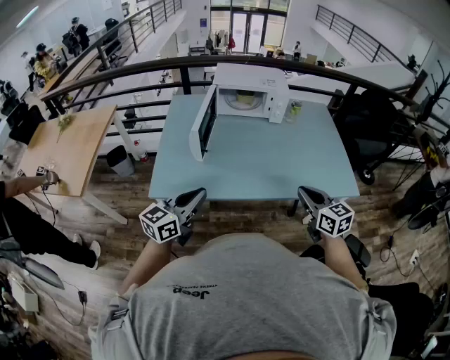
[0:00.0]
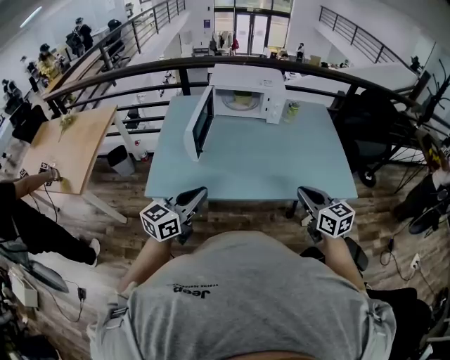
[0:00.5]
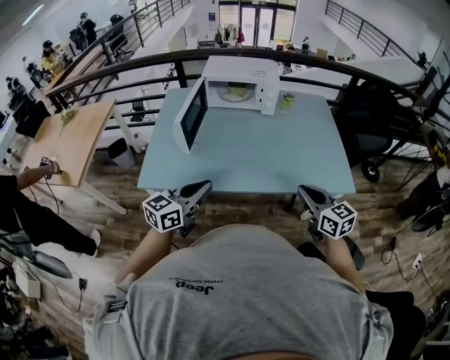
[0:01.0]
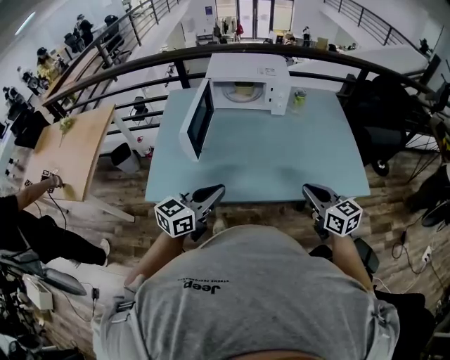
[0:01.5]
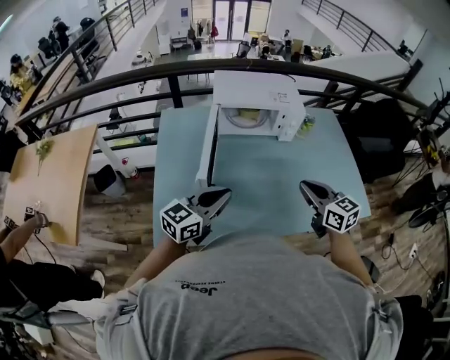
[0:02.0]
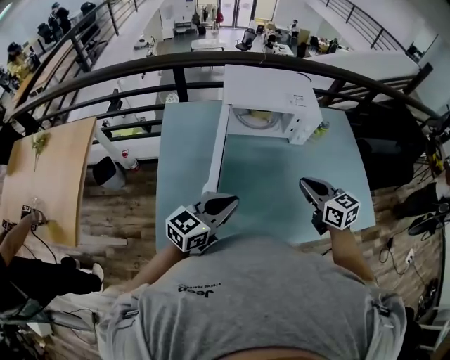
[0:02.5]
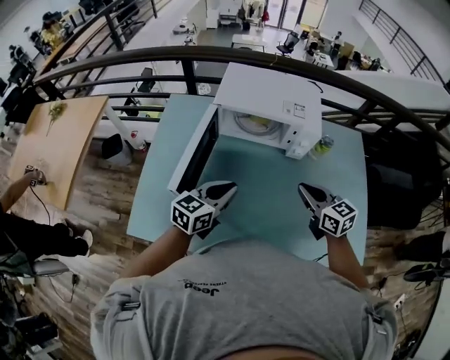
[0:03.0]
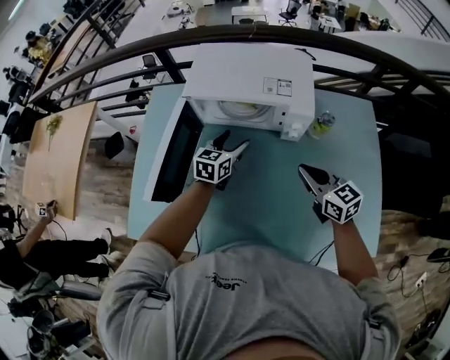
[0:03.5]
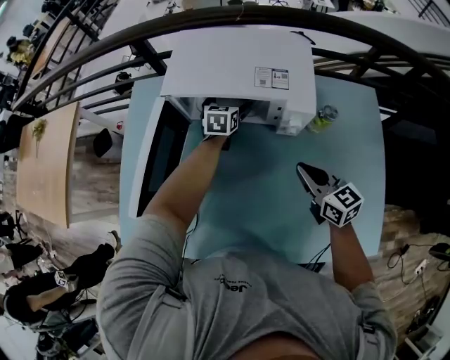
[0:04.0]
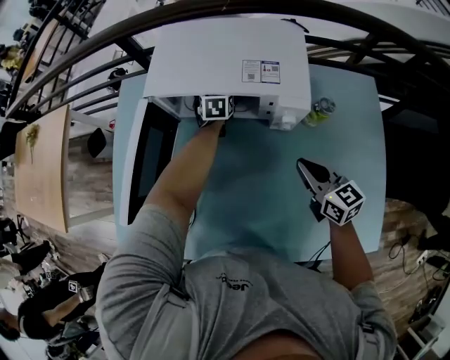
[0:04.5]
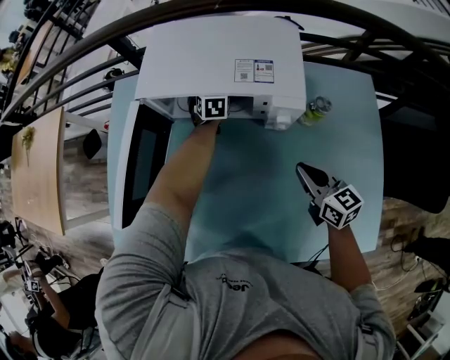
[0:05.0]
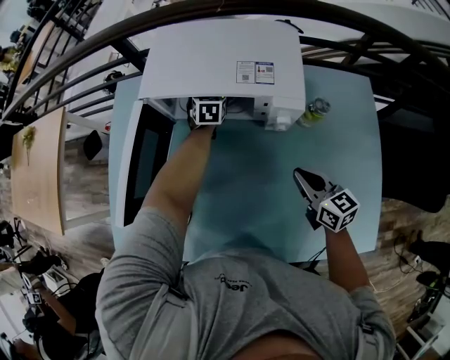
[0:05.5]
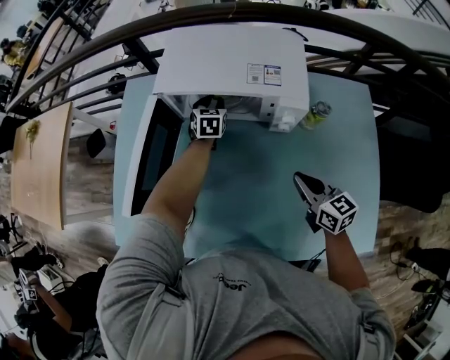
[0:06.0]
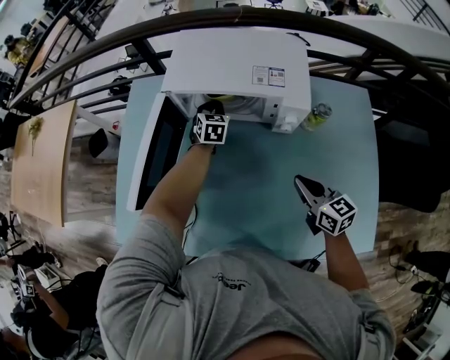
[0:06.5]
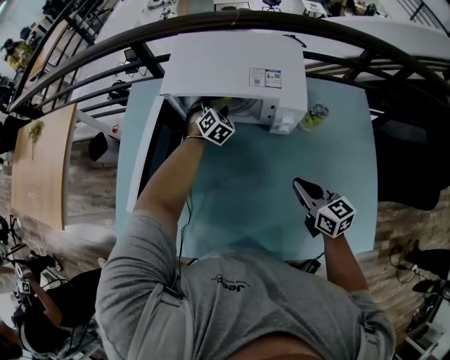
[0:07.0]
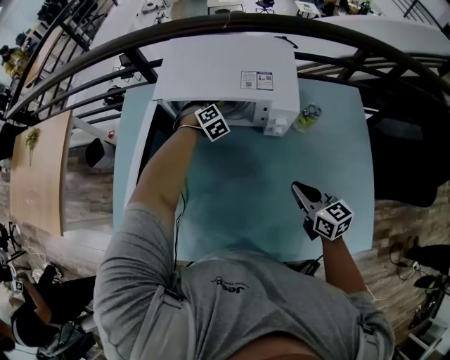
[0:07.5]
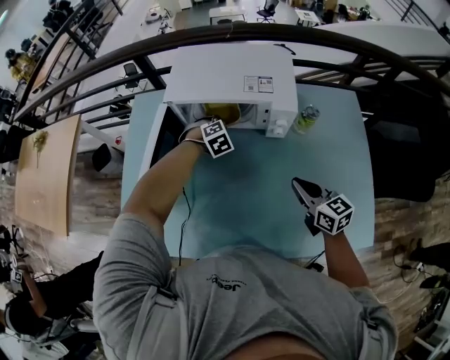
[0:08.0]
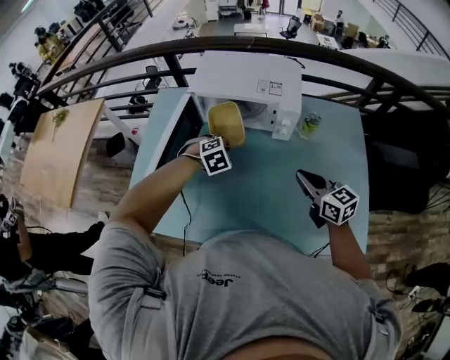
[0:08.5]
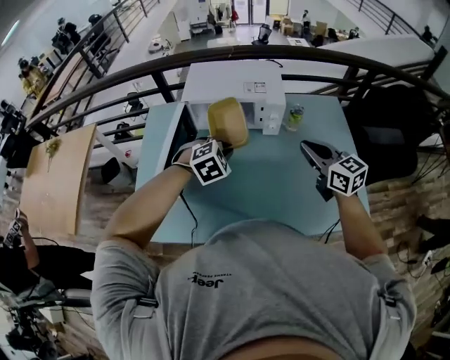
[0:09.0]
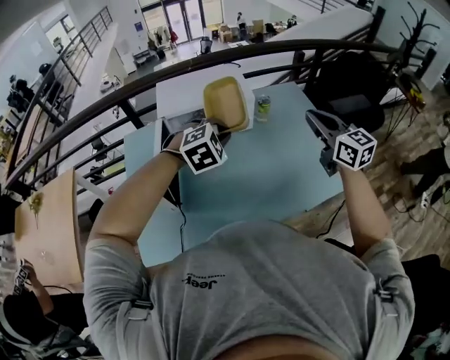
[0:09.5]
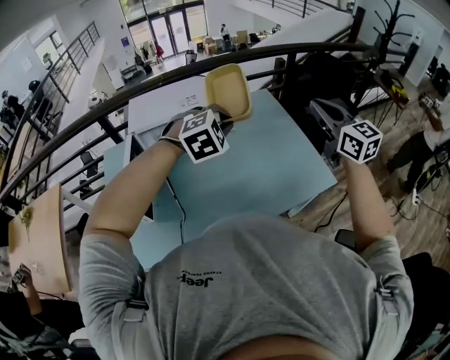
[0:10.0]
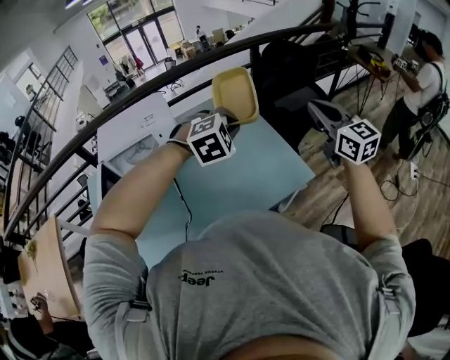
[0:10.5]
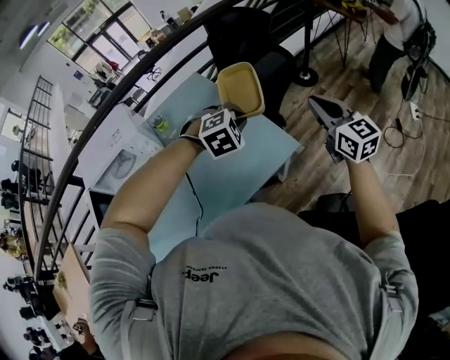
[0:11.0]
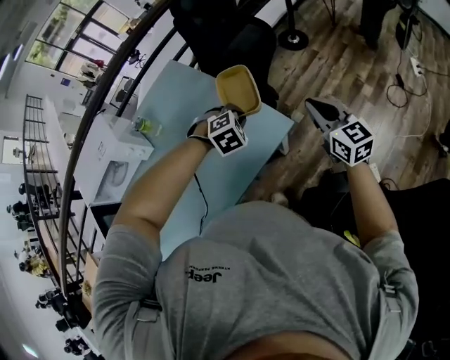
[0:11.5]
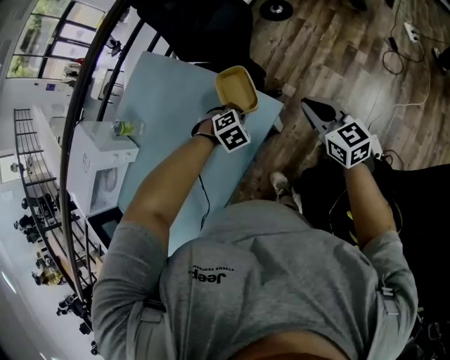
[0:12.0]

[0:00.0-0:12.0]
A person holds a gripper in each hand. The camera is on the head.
0:00.0 to 0:02.0: The left gripper travels forward by roughly 20 cm. The right gripper heads forward and to the left, covering approximately 20 cm.
0:02.0 to 0:04.0: The right gripper ends up some 30 cm from where it was; the left gripper shifts by roughly 50 cm, rotates about 50 degrees, and opens up.
0:04.0 to 0:06.0: The left gripper closes up.
0:06.0 to 0:08.0: The left gripper travels backward by roughly 10 cm, and rolls clockwise, seen from behind, by some 60 degrees.
0:08.0 to 0:10.0: The right gripper is displaced upward by approximately 30 cm, and rotates roughly 40 degrees, while the left gripper changes place by about 50 cm, and swivels some 40 degrees.
0:10.0 to 0:12.0: The left gripper changes place by roughly 60 cm, and points its fingers about 30 degrees further downward; the right gripper ends up about 50 cm from where it was, and changes its angle by roughly 30 degrees.

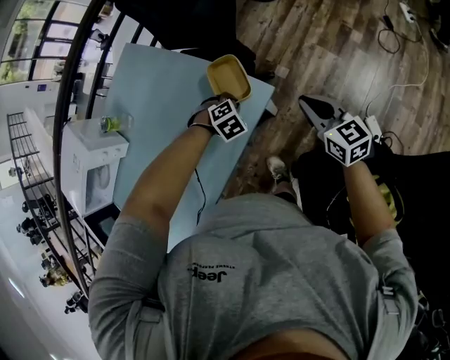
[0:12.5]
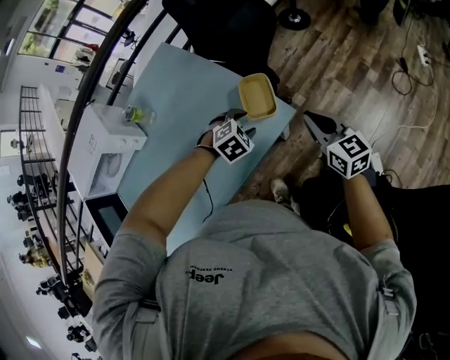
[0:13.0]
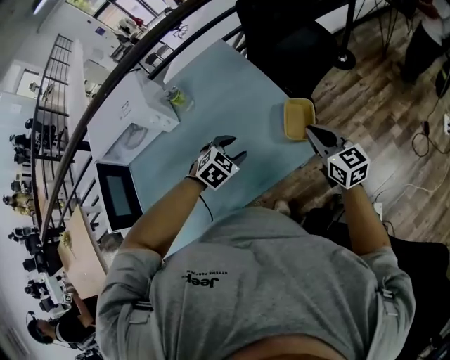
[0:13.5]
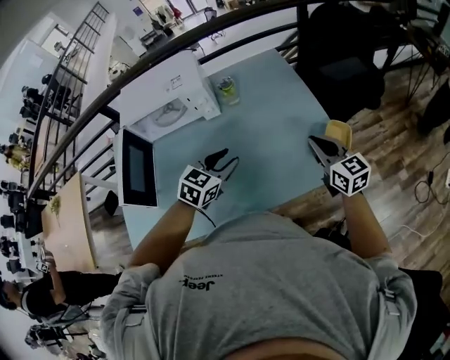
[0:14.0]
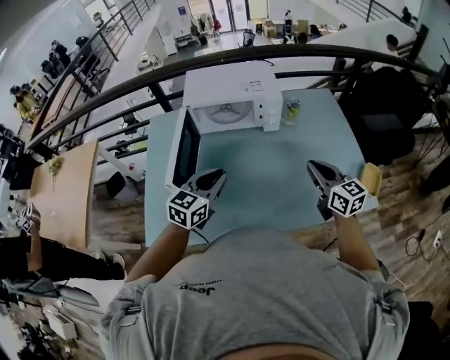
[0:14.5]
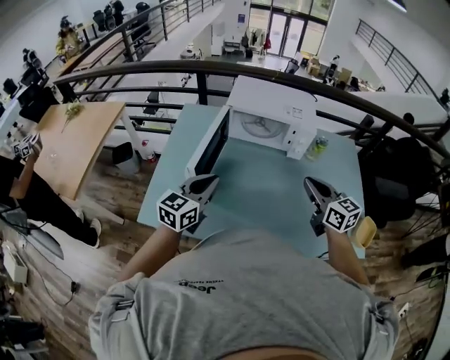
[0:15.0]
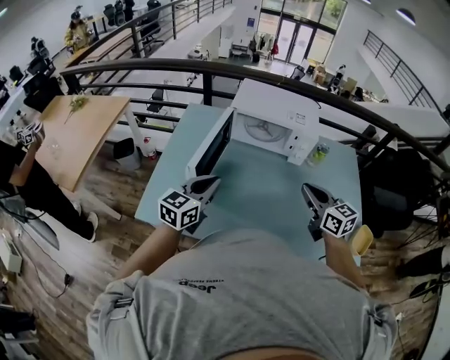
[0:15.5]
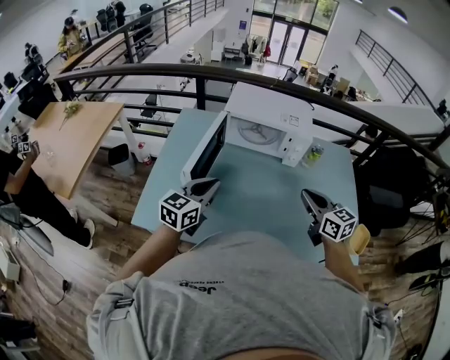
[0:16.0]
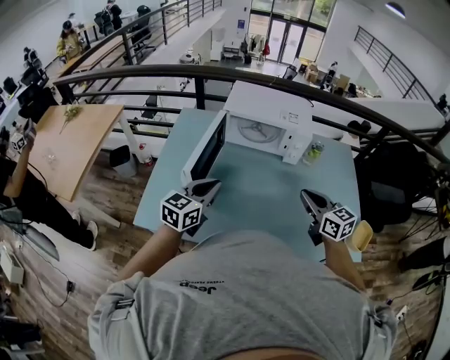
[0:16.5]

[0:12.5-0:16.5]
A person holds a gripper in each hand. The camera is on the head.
0:12.5 to 0:14.5: The pair of grippers is taken roughly 60 cm. The right gripper swivels approximately 40 degrees. The left gripper points its fingers approximately 60 degrees further upward.
0:14.5 to 0:16.5: Both grippers move to the left, about 5 cm.

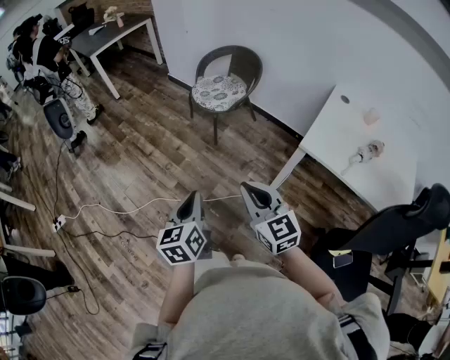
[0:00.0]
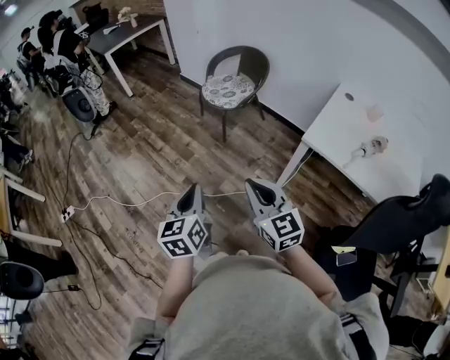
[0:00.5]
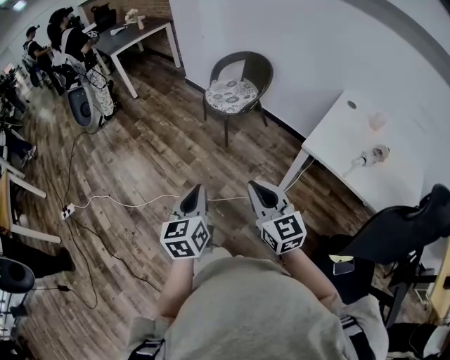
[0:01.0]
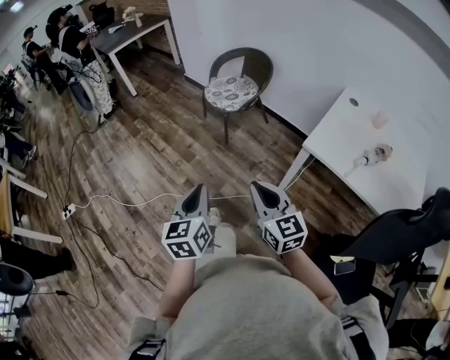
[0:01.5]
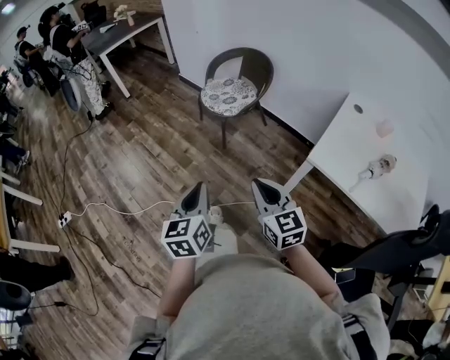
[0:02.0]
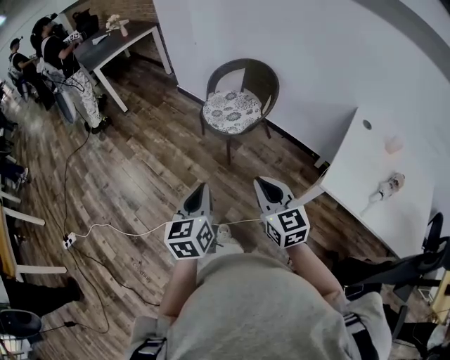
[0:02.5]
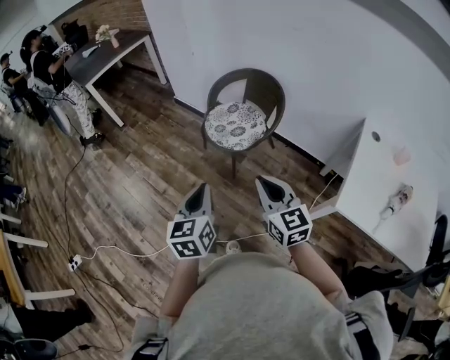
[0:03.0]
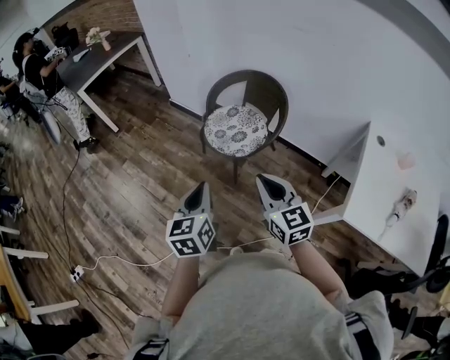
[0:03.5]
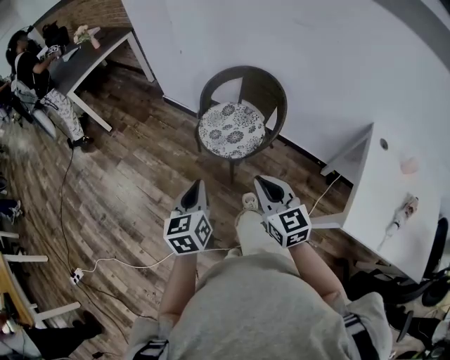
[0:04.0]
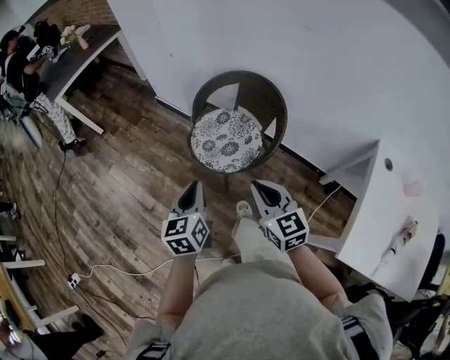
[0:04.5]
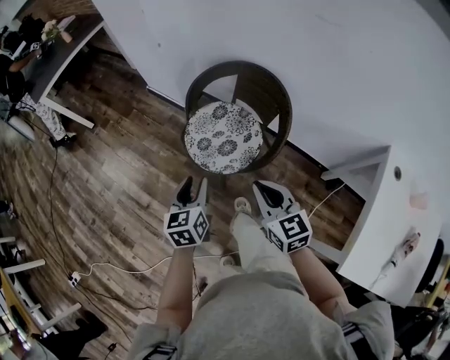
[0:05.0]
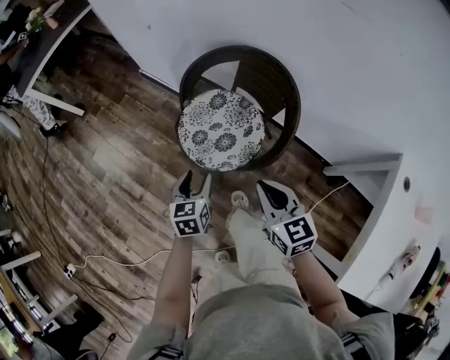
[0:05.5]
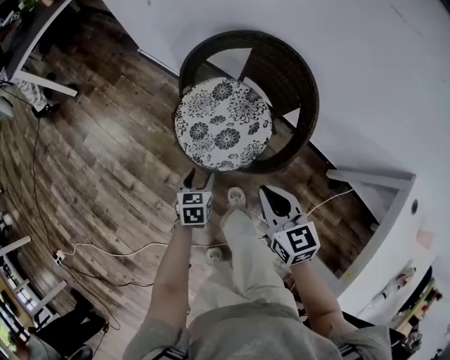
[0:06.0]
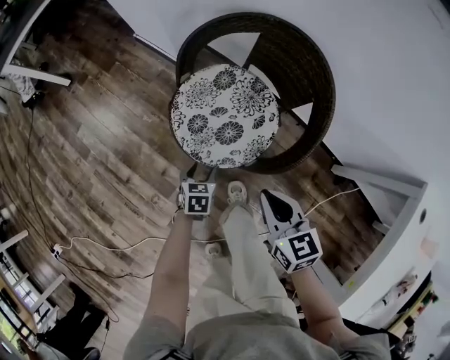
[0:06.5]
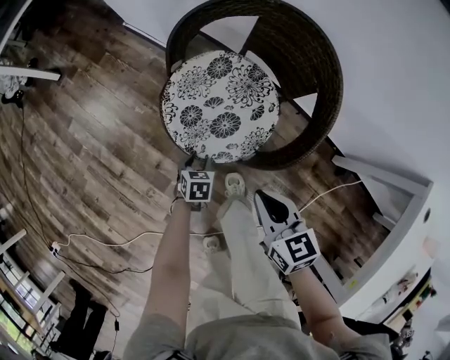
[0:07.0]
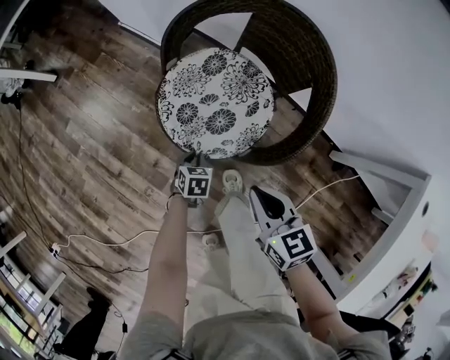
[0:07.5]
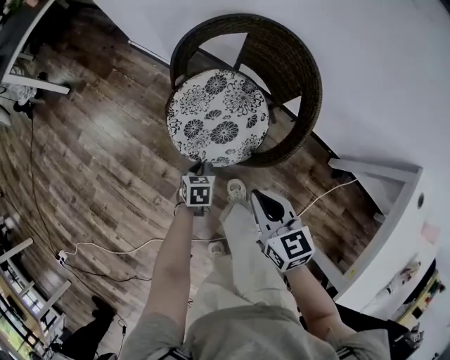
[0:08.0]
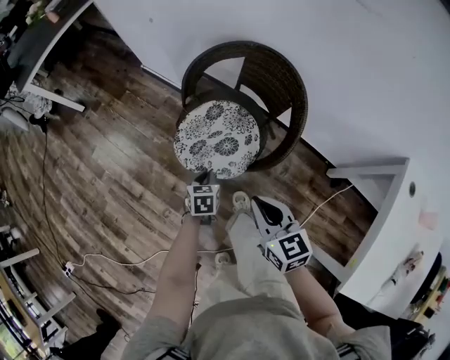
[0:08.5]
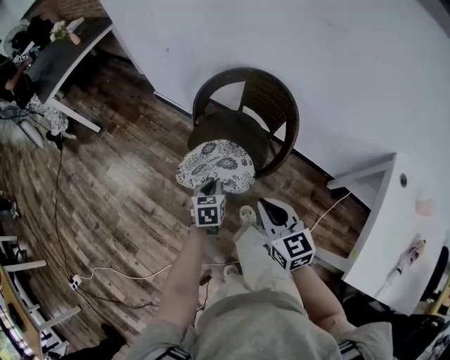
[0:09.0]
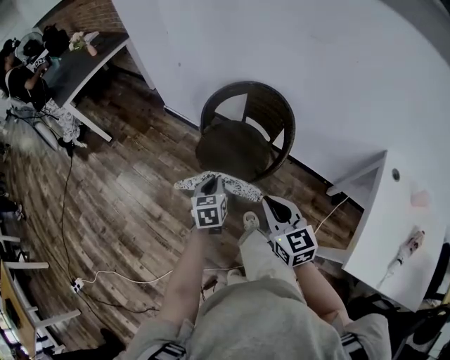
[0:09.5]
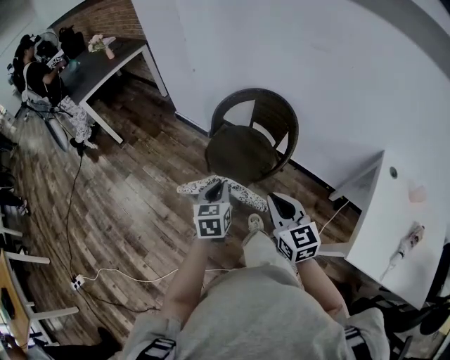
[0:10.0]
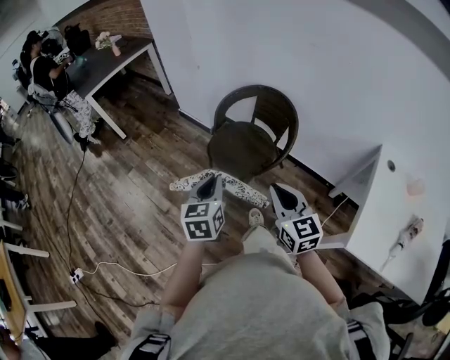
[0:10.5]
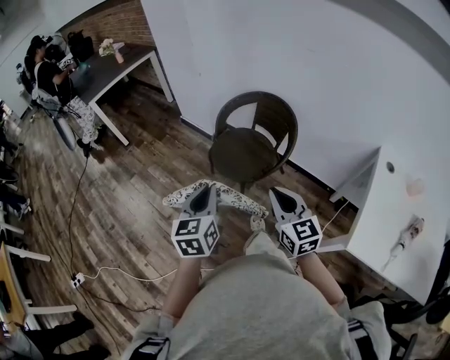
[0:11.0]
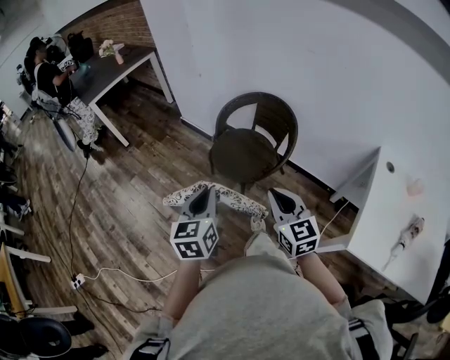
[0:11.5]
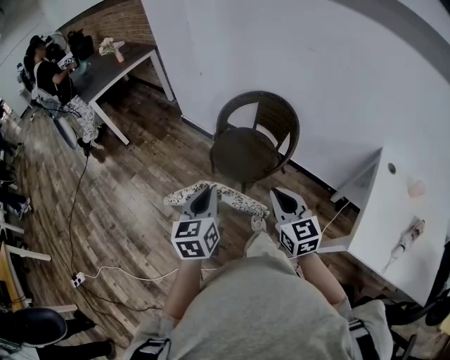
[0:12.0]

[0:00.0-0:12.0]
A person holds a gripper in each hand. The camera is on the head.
0:00.0 to 0:02.0: The left gripper goes about 5 cm forward; the right gripper is displaced forward and to the right by approximately 10 cm.
0:02.0 to 0:04.0: The two grippers go some 40 cm forward.
0:04.0 to 0:06.0: The right gripper shifts approximately 35 cm forward and downward; the left gripper moves downward and forward, some 50 cm, rotates roughly 30 degrees, and opens.
0:06.0 to 0:08.0: The left gripper heads downward, covering roughly 10 cm, and closes up; the right gripper moves about 10 cm downward and comes back.
0:08.0 to 0:10.0: The two grippers go roughly 40 cm upward and backward. The right gripper turns by about 20 degrees. The left gripper tilts its fingers some 30 degrees upward.
0:10.0 to 0:12.0: The left gripper travels upward and backward by some 15 cm.
